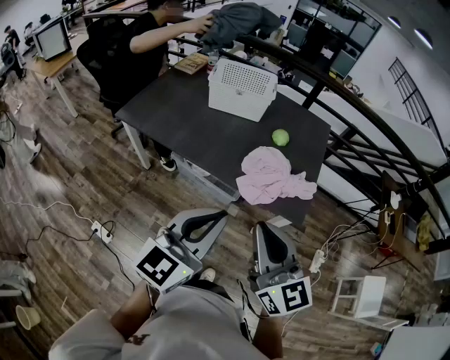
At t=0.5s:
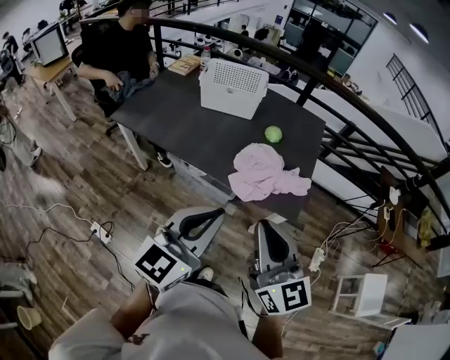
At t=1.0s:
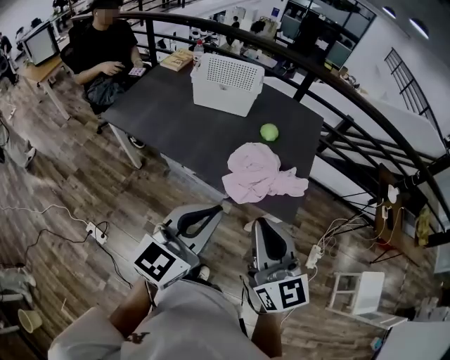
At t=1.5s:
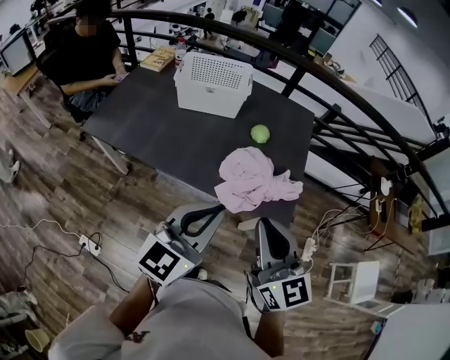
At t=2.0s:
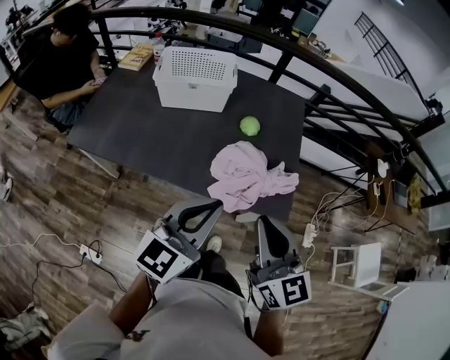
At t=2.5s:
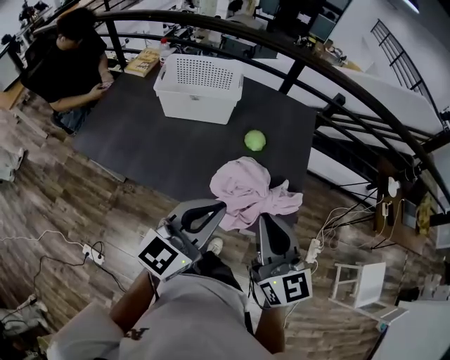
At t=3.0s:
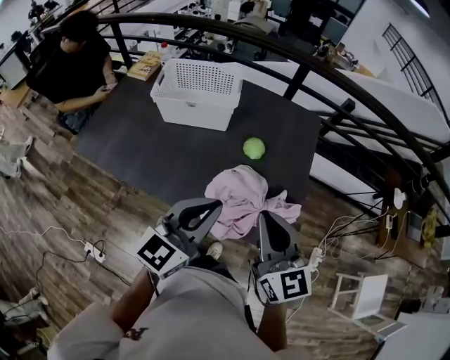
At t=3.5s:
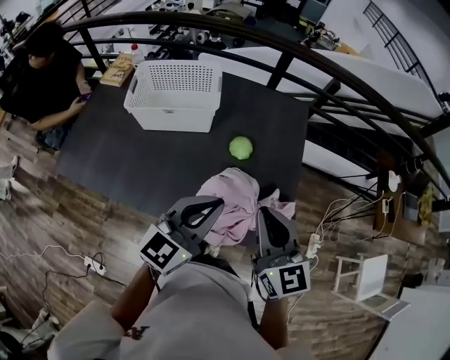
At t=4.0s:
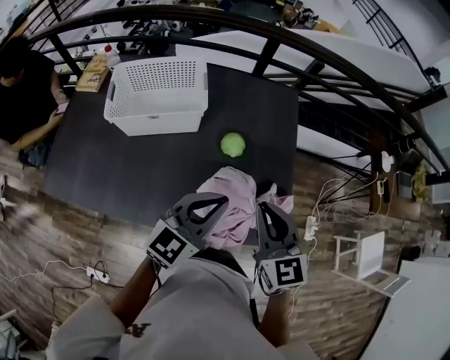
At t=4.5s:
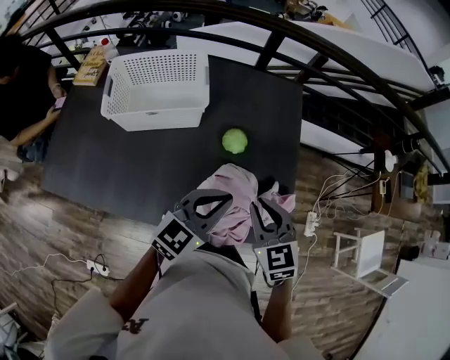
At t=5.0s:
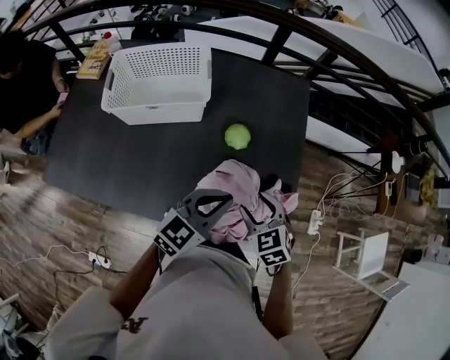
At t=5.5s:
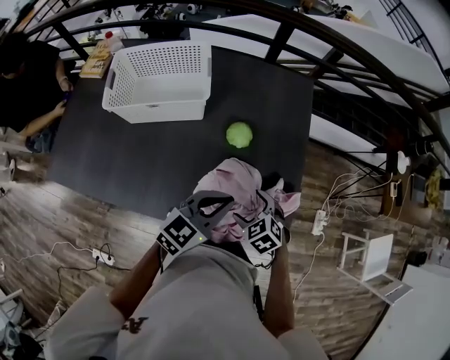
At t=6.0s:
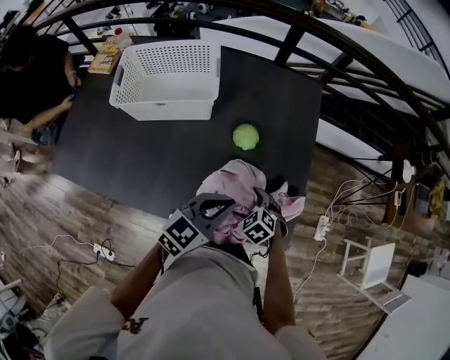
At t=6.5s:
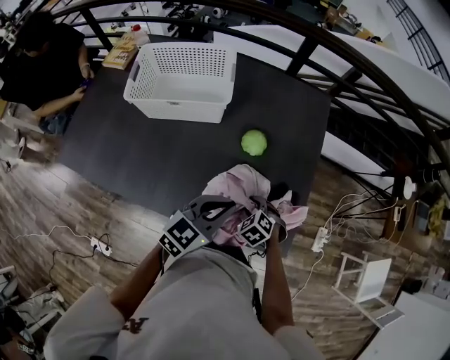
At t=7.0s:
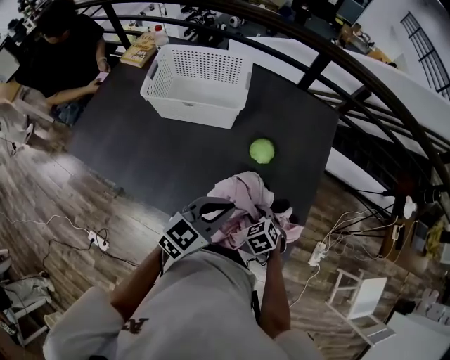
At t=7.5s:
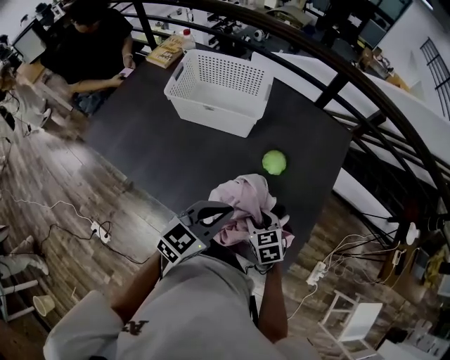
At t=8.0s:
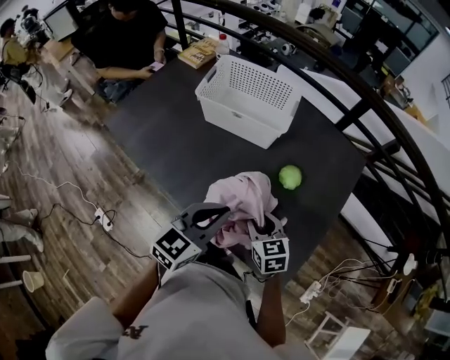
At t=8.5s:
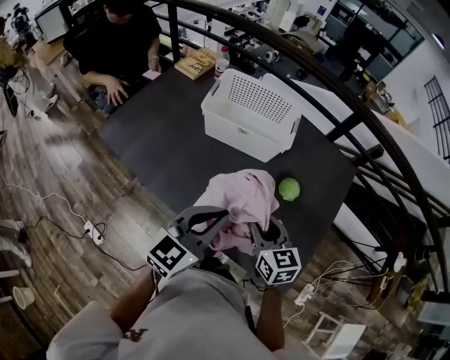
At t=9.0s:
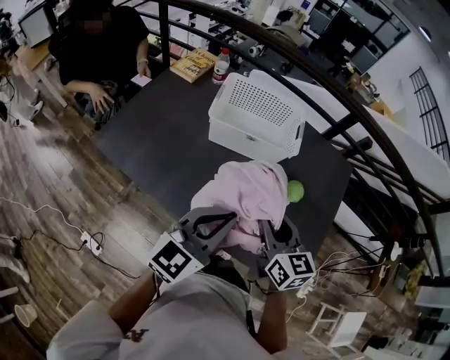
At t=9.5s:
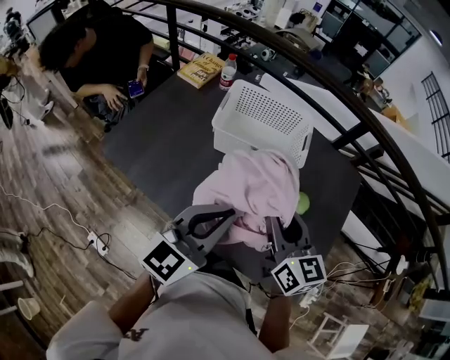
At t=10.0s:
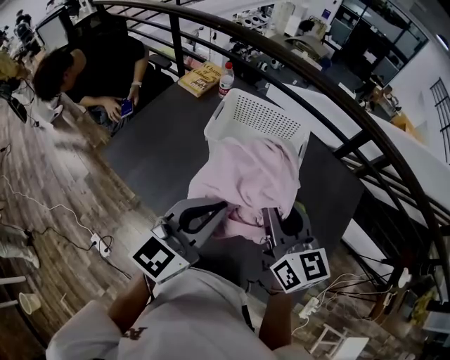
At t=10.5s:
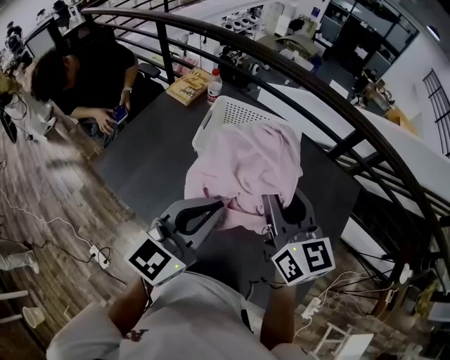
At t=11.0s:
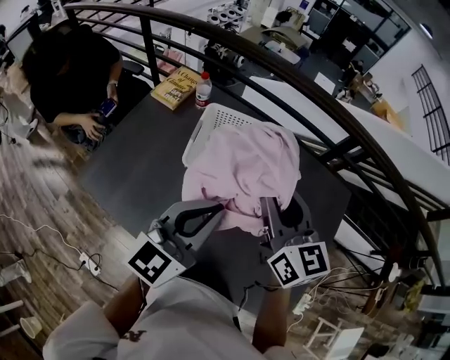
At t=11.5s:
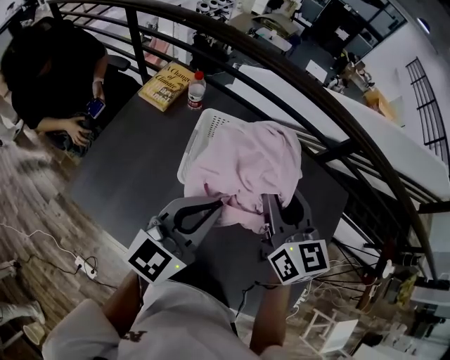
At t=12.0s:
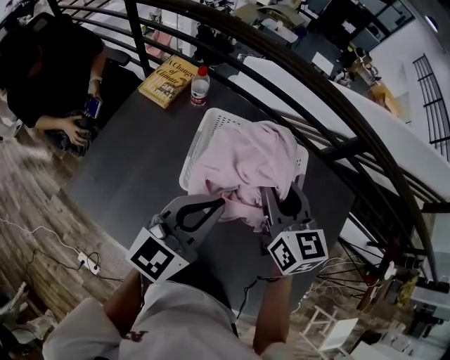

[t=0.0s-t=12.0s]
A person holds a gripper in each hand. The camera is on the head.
t=0.0s to t=2.0s: The grippers both shift forward by some 15 cm.
t=2.0s to t=4.0s: Both grippers travel together forward, some 25 cm.
t=4.0s to t=6.0s: The left gripper moves downward, about 10 cm. Meanwhile the right gripper travels downward by some 30 cm, angles its fingers downward, by about 50 degrees, and opens its fingers.
t=6.0s to t=8.0s: The right gripper travels upward and to the left by some 15 cm, turns by roughly 30 degrees, and closes its fingers; the left gripper moves to the left and upward, about 15 cm, and changes its angle by about 30 degrees.
t=8.0s to t=10.0s: The left gripper heads upward, to the left and forward, covering approximately 20 cm; the right gripper goes about 30 cm upward and forward, and angles its fingers upward, by roughly 30 degrees.
t=10.0s to t=12.0s: Both grippers move forward, some 20 cm.

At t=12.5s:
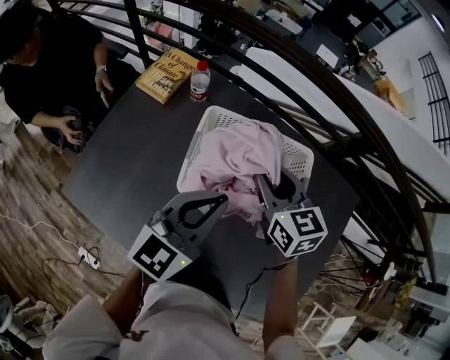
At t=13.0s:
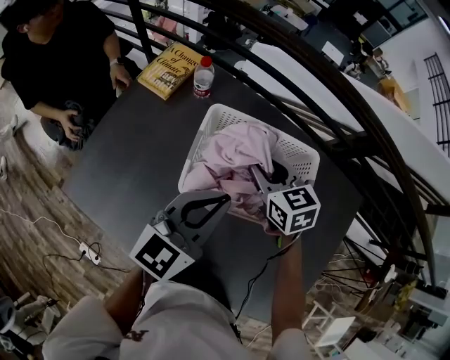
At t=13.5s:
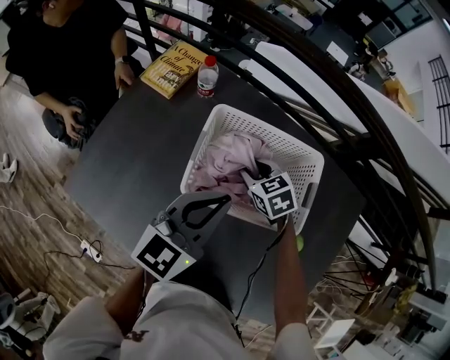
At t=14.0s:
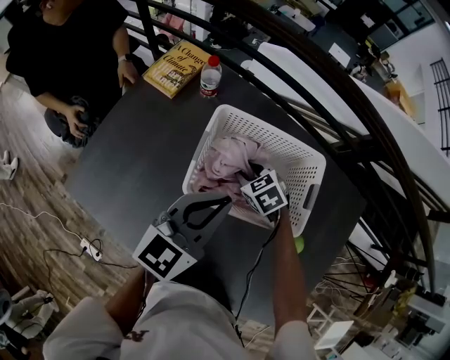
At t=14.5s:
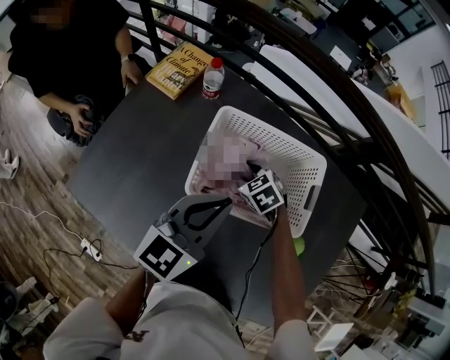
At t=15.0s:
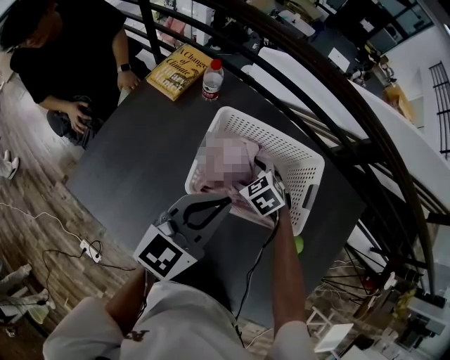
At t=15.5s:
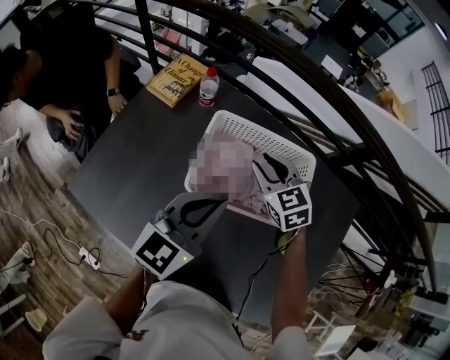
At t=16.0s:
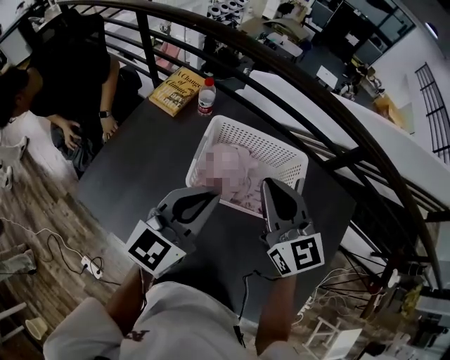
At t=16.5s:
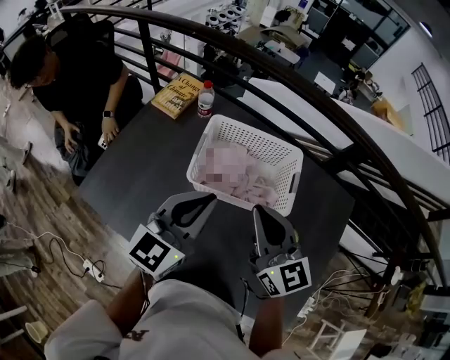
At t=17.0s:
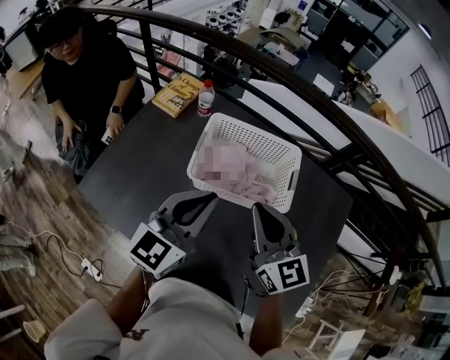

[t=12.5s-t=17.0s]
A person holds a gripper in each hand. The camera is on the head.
t=12.5s to t=14.5s: The right gripper goes roughly 20 cm downward, and tips its fingers downward by approximately 30 degrees.
t=14.5s to t=17.0s: The left gripper moves backward and upward, some 10 cm. Meanwhile the right gripper moves upward and backward, some 35 cm, tips its fingers upward by roughly 50 degrees, and opens, then closes again.

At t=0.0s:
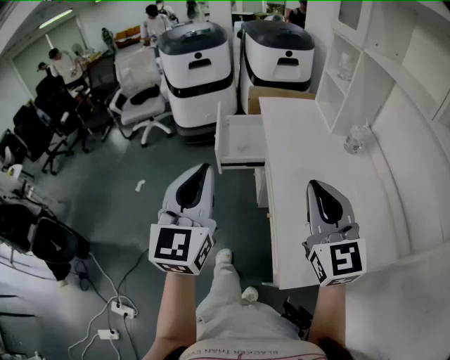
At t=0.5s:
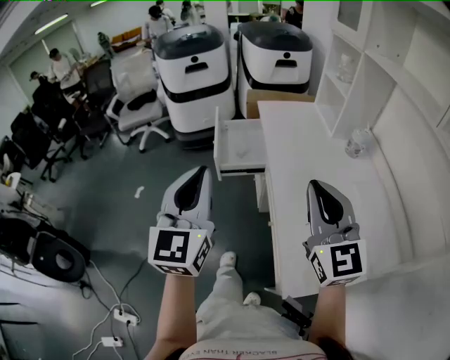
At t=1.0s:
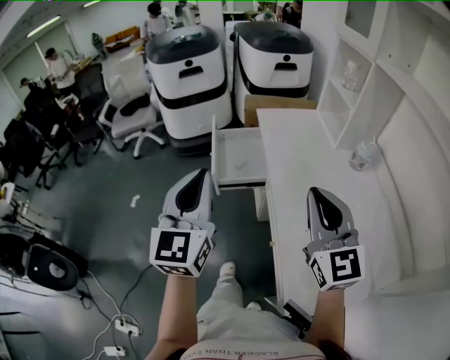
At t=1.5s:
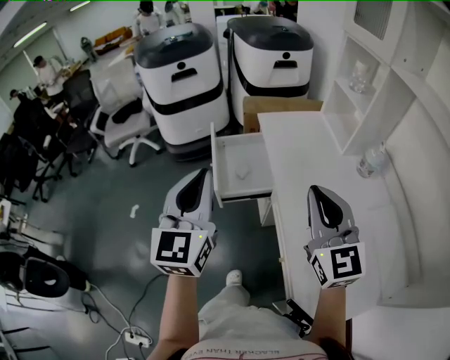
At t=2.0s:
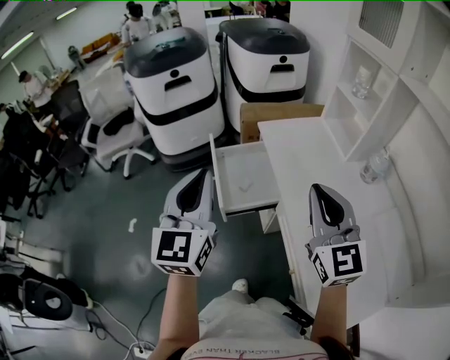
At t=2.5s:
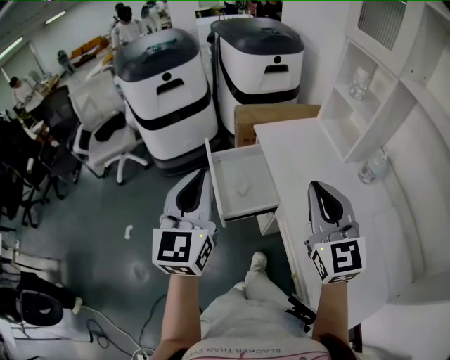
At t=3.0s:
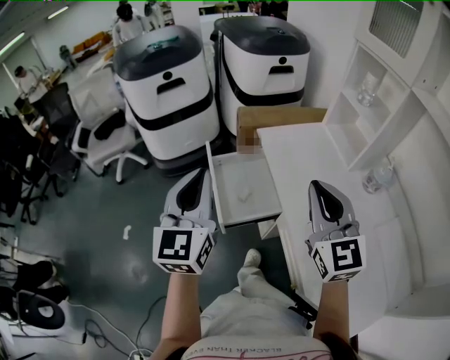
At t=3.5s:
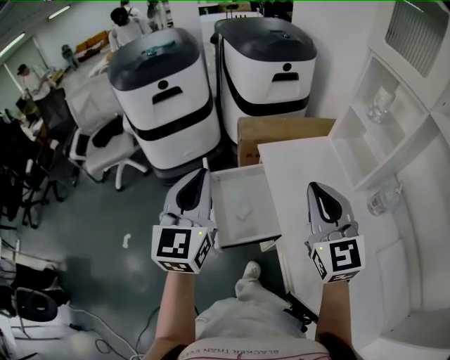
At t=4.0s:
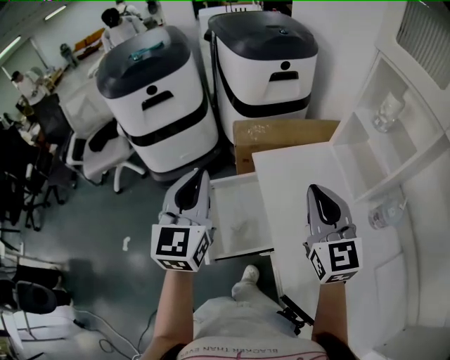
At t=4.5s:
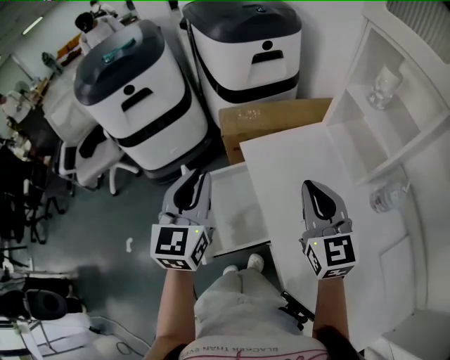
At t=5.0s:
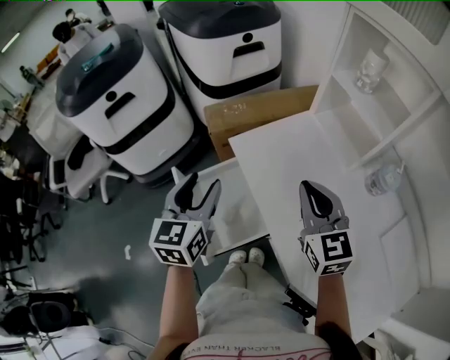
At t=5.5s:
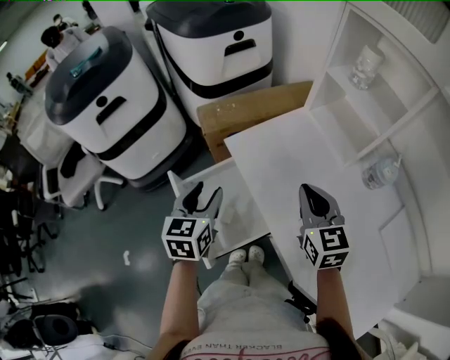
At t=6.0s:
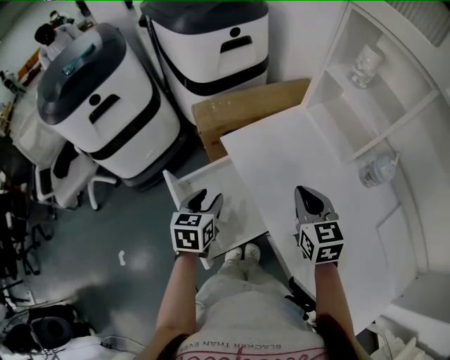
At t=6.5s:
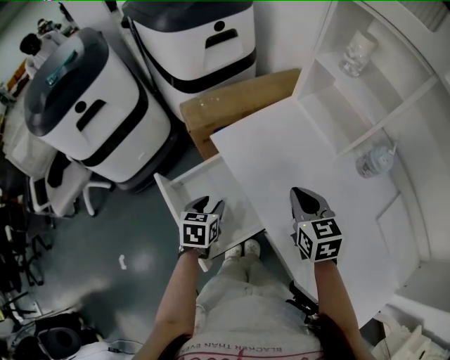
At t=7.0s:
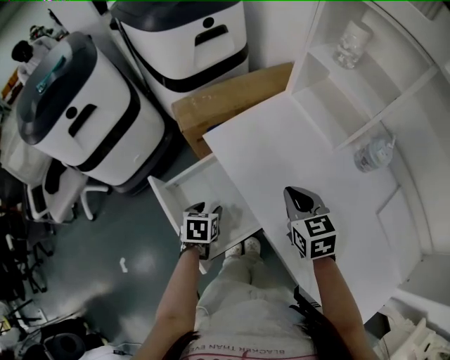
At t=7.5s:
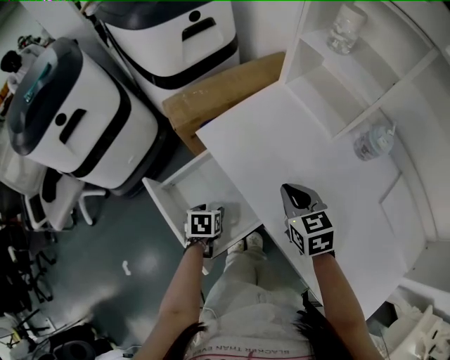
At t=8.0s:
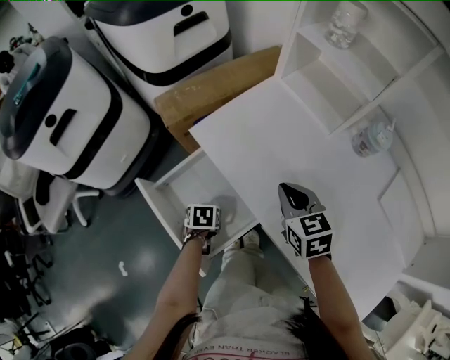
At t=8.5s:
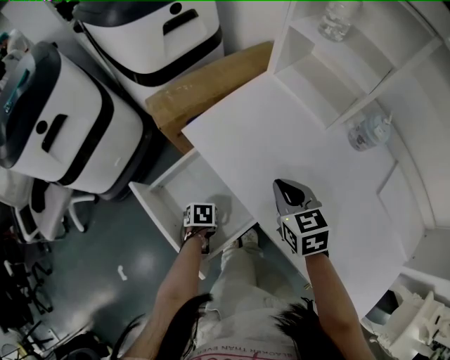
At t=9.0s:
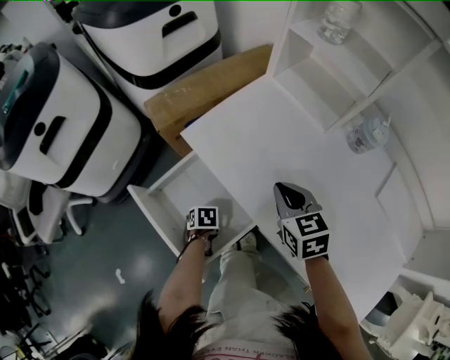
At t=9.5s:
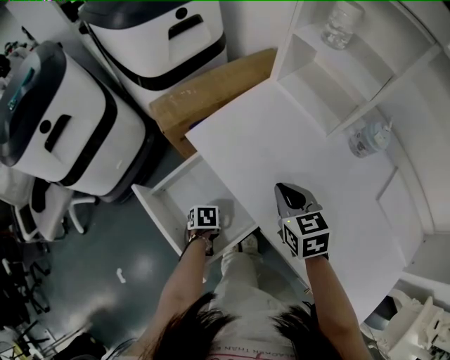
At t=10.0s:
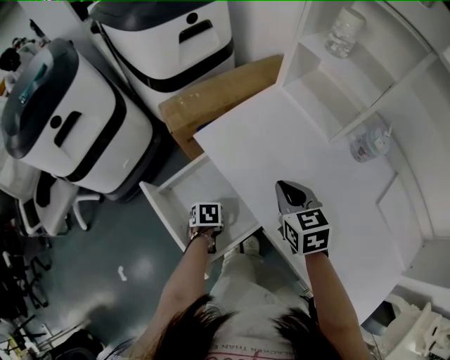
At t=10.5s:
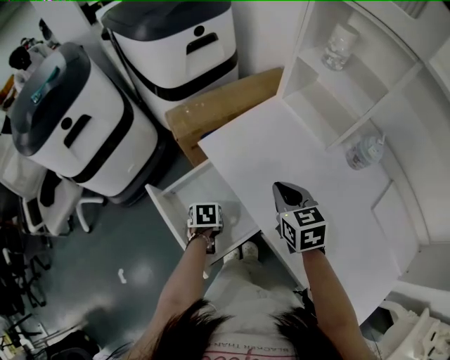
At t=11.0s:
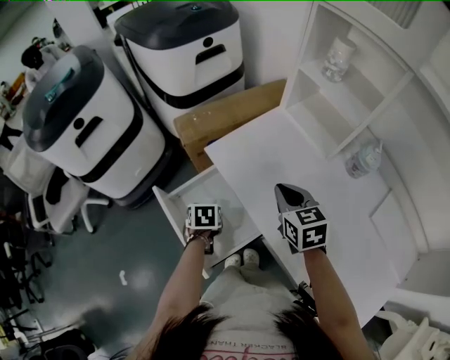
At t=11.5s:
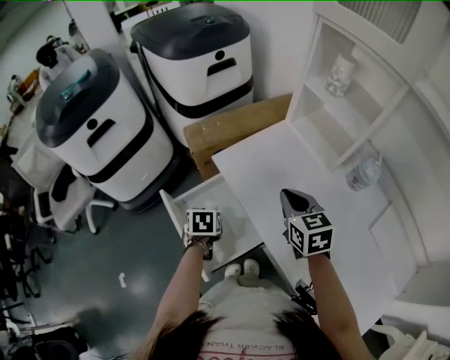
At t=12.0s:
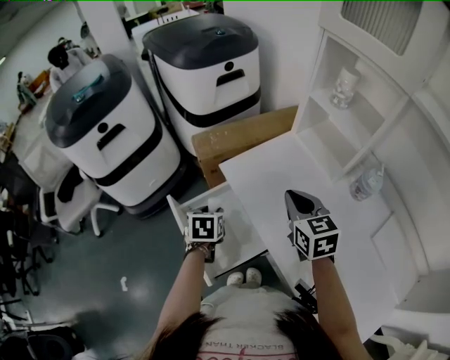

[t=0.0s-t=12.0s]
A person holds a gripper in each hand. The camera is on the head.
t=0.0s to t=2.0s: The two grippers go about 25 cm forward.
t=2.0s to t=4.0s: Both grippers move forward, about 25 cm.
t=4.0s to t=6.0s: The left gripper shifts roughly 25 cm downward, tips its fingers downward by roughly 40 degrees, and opens its fingers. The right gripper goes approximately 15 cm downward, and changes its angle by approximately 30 degrees.
t=6.0s to t=8.0s: The right gripper goes approximately 5 cm downward, while the left gripper heads downward, covering some 20 cm, and tips its fingers downward by approximately 40 degrees.
t=8.0s to t=10.0s: The left gripper closes its fingers.
t=10.0s to t=12.0s: The left gripper travels upward by about 20 cm, and swivels roughly 30 degrees. The right gripper is displaced upward by some 10 cm.
